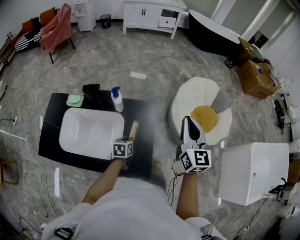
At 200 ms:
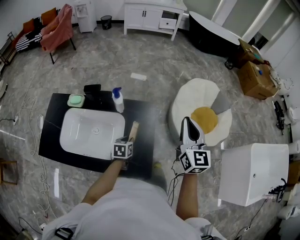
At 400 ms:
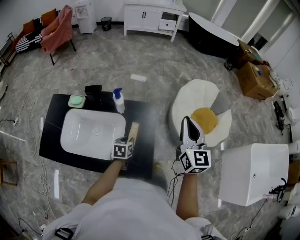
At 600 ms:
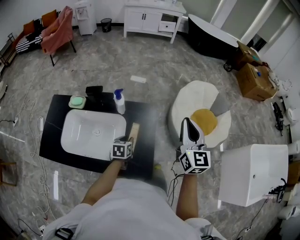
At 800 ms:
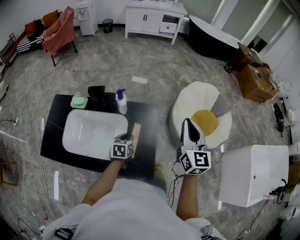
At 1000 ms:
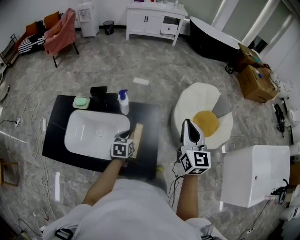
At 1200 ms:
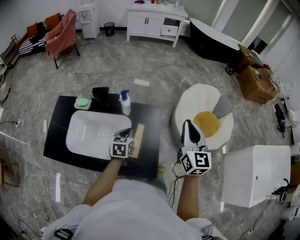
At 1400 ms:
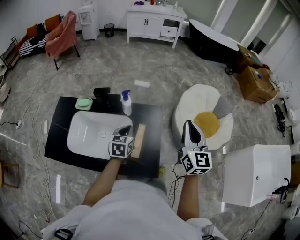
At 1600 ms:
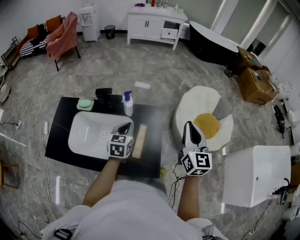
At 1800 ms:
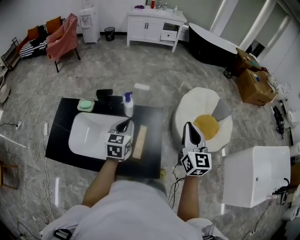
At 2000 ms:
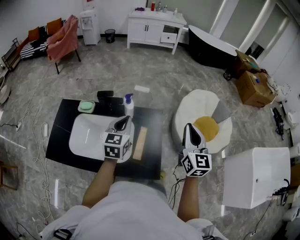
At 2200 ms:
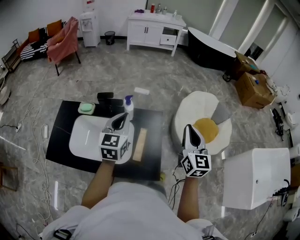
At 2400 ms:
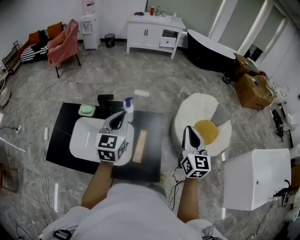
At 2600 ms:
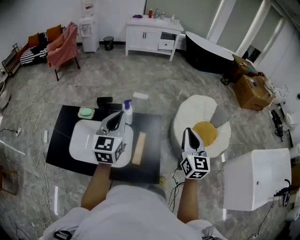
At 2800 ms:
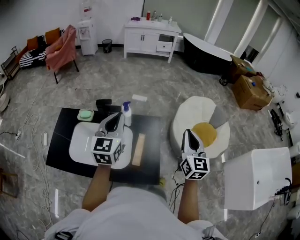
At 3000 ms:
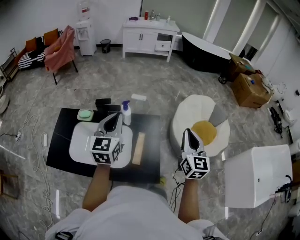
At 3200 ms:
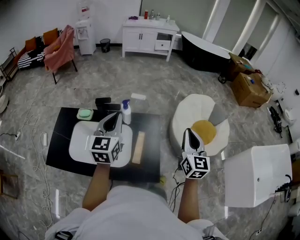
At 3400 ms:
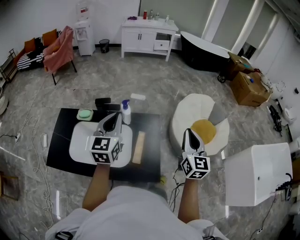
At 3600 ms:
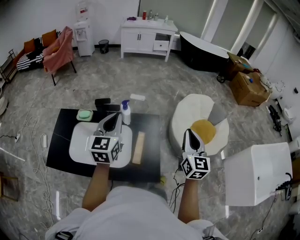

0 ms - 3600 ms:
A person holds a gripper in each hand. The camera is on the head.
0 ms - 1800 ms: The left gripper heads upward, covering about 20 cm, and changes its angle by approximately 30 degrees, while the right gripper shifts about 5 cm backward.
1800 ms - 3600 ms: The left gripper goes about 10 cm upward.

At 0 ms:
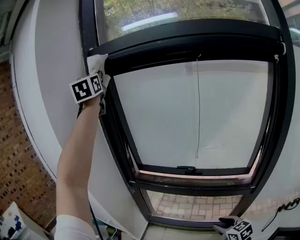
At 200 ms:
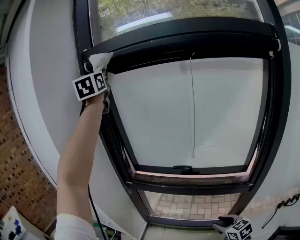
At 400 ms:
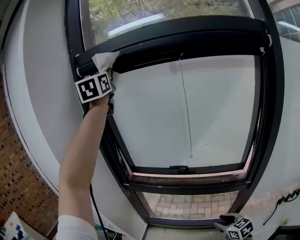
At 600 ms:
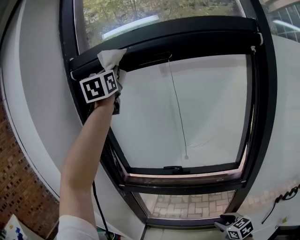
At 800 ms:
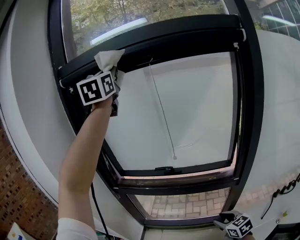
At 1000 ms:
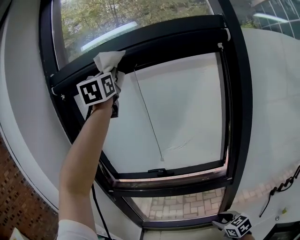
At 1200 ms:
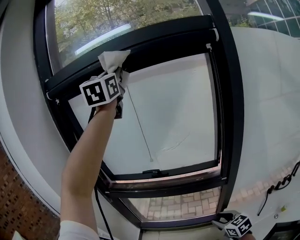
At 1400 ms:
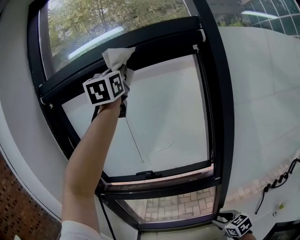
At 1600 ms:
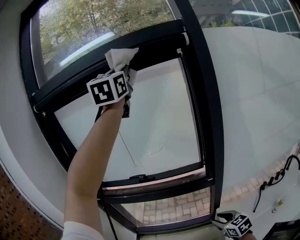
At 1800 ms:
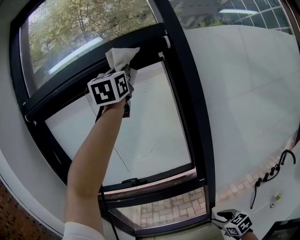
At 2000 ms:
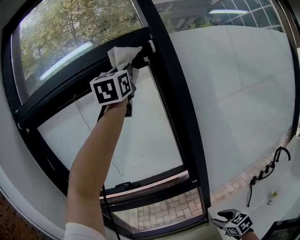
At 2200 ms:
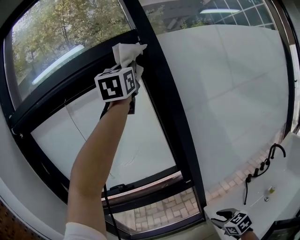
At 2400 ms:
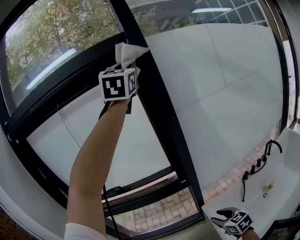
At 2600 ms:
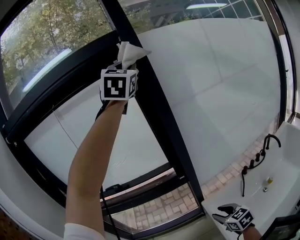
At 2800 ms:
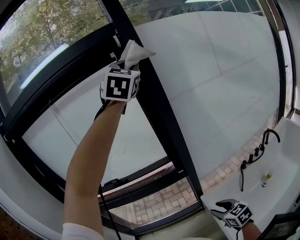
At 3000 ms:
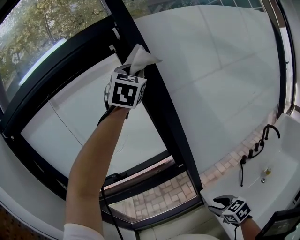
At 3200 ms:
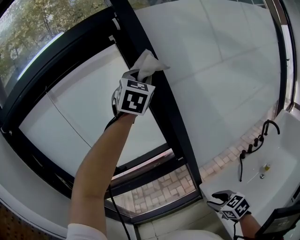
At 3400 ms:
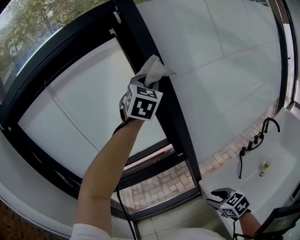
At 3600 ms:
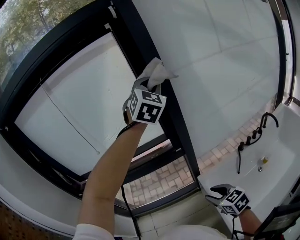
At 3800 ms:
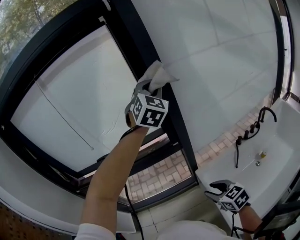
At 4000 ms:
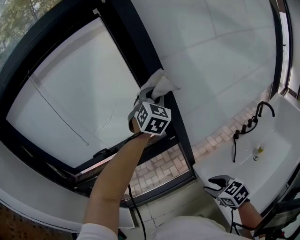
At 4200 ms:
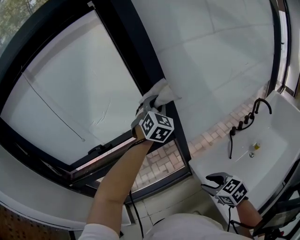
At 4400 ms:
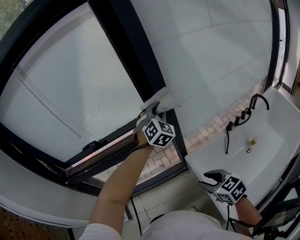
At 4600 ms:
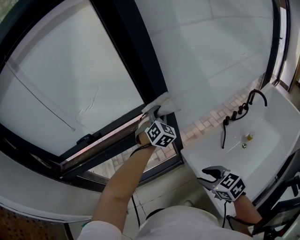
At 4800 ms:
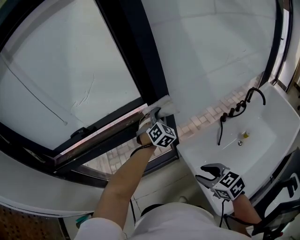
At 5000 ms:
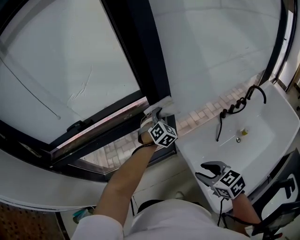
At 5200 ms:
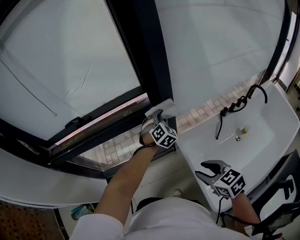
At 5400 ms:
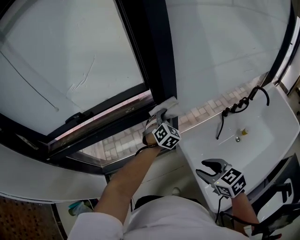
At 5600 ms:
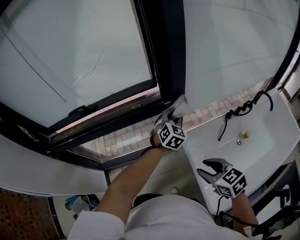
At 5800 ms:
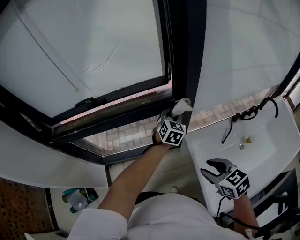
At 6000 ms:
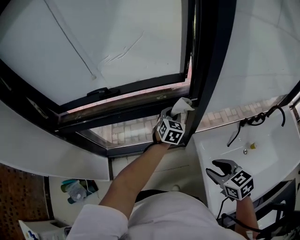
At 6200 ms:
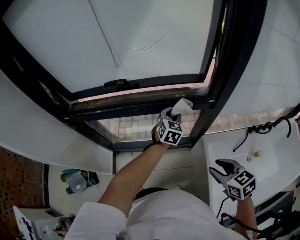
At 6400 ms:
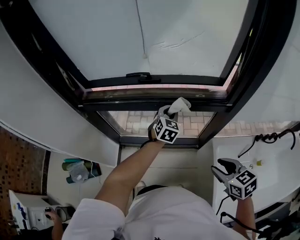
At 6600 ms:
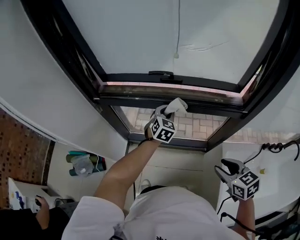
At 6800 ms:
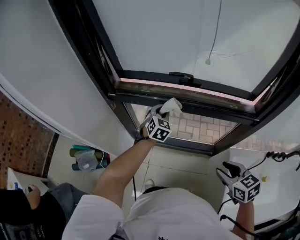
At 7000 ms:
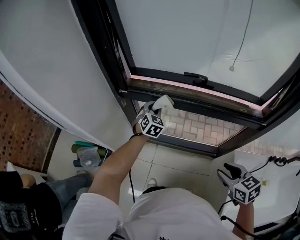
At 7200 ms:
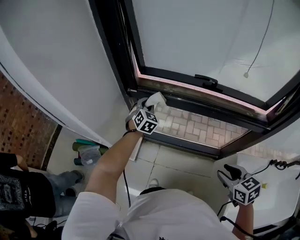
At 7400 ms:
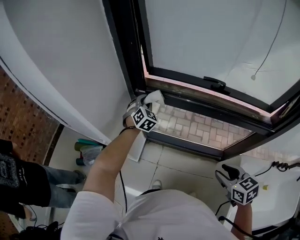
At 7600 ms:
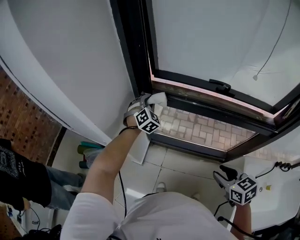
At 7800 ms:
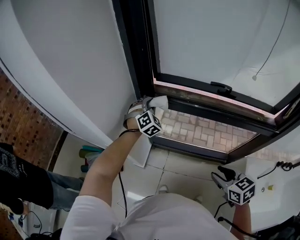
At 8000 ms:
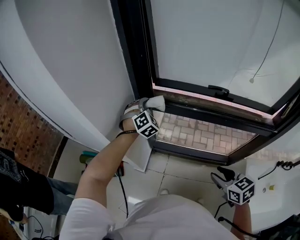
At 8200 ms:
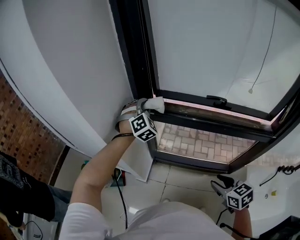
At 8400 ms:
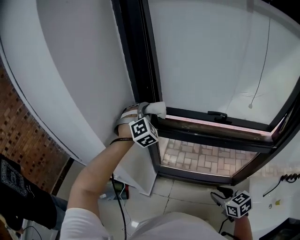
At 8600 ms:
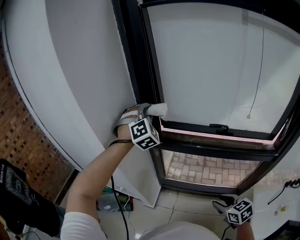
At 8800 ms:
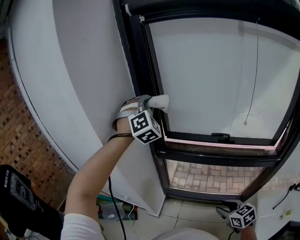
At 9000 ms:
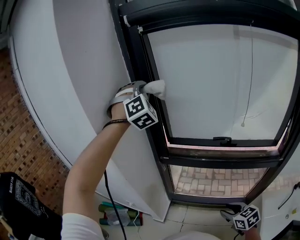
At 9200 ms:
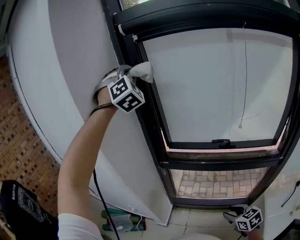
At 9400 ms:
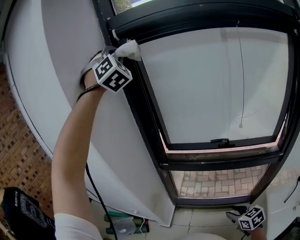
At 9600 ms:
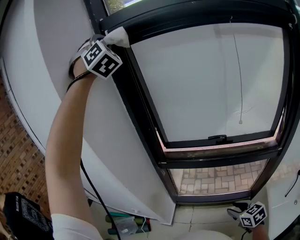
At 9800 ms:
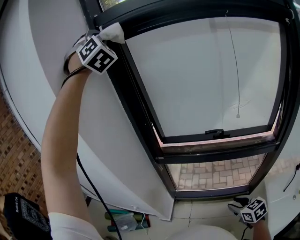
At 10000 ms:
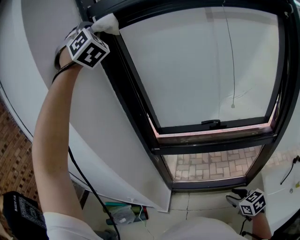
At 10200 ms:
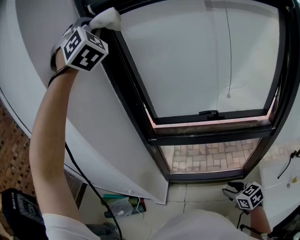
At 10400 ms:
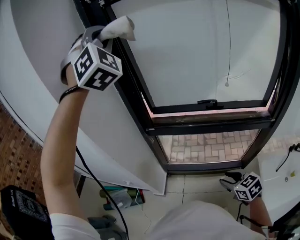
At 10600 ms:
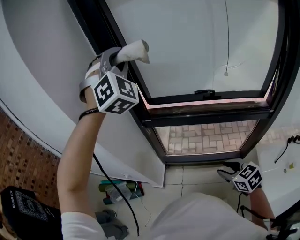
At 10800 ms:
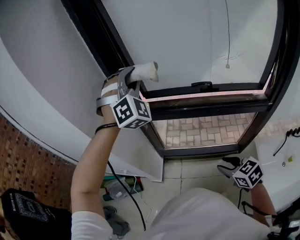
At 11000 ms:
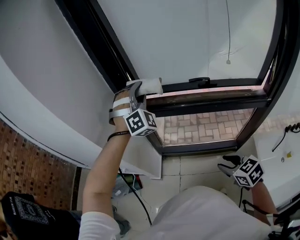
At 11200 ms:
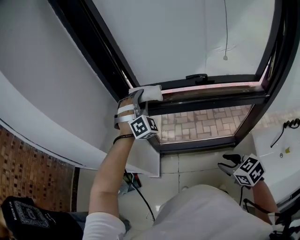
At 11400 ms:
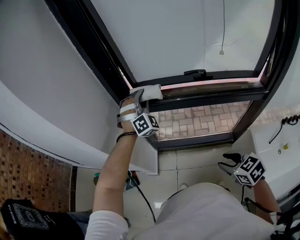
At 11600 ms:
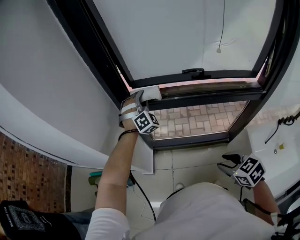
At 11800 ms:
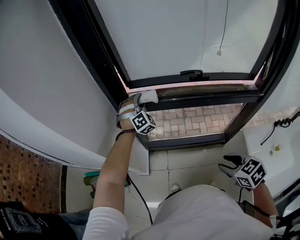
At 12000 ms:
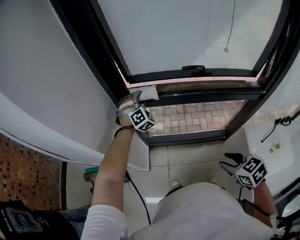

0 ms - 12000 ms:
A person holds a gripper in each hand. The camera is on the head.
0 ms - 1600 ms: The right gripper travels to the right and backward by approximately 20 cm; the left gripper heads to the right, covering some 50 cm, and changes its angle by some 30 degrees.
1600 ms - 3000 ms: The left gripper moves to the right and downward, approximately 30 cm, and turns by approximately 30 degrees. The right gripper moves to the right, some 10 cm.
3000 ms - 4400 ms: The left gripper goes approximately 40 cm downward.
4400 ms - 6000 ms: The left gripper moves downward and to the left, approximately 25 cm, and swivels about 40 degrees.
6000 ms - 7600 ms: The left gripper changes place by about 70 cm, and rotates approximately 40 degrees; the right gripper moves approximately 35 cm.
7600 ms - 9000 ms: The left gripper heads upward, covering approximately 50 cm, and changes its angle by about 40 degrees.
9000 ms - 10400 ms: The left gripper is displaced upward and backward by roughly 15 cm.
10400 ms - 12000 ms: The left gripper travels downward by roughly 60 cm, and turns by roughly 30 degrees.

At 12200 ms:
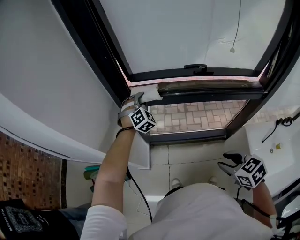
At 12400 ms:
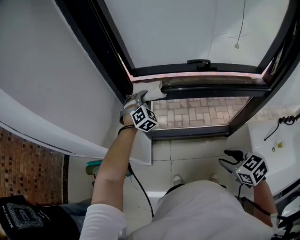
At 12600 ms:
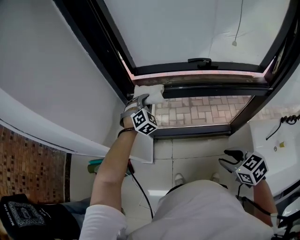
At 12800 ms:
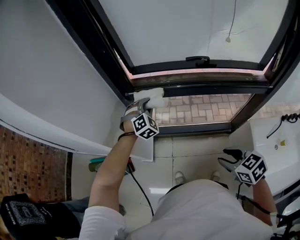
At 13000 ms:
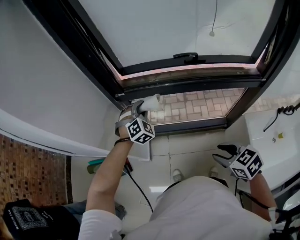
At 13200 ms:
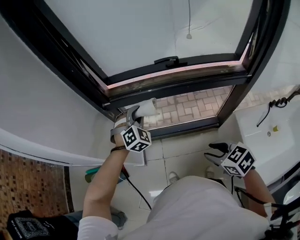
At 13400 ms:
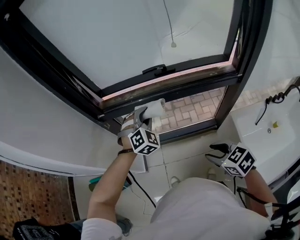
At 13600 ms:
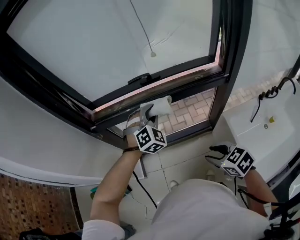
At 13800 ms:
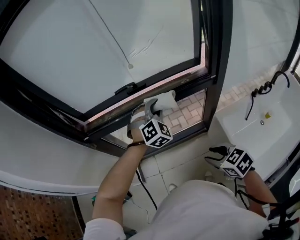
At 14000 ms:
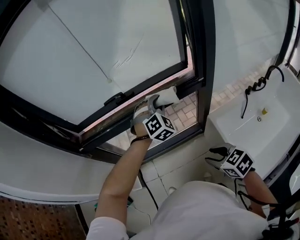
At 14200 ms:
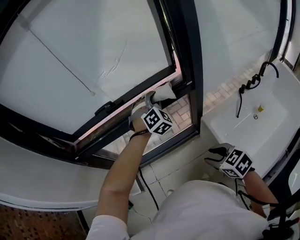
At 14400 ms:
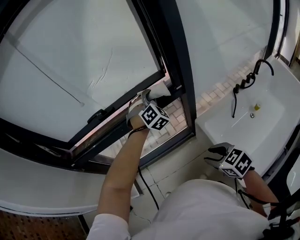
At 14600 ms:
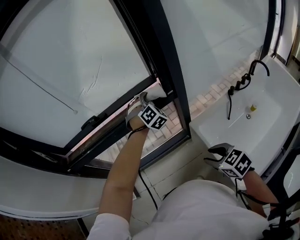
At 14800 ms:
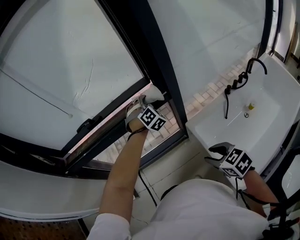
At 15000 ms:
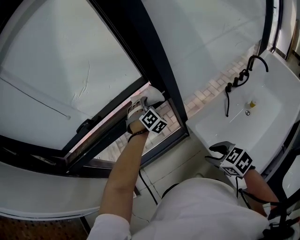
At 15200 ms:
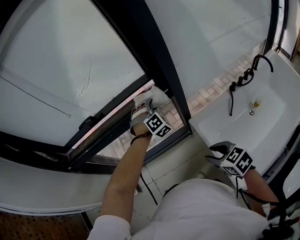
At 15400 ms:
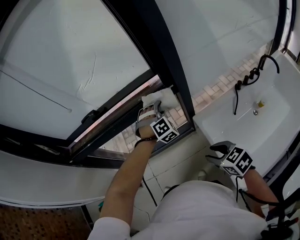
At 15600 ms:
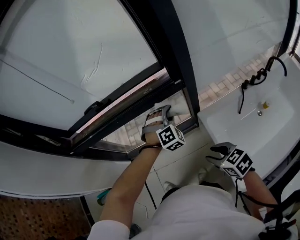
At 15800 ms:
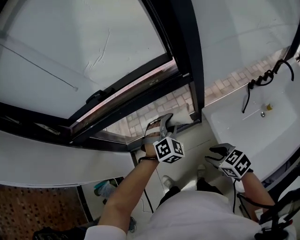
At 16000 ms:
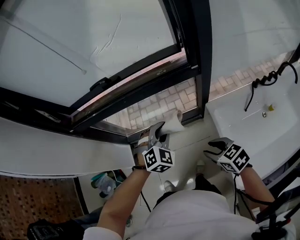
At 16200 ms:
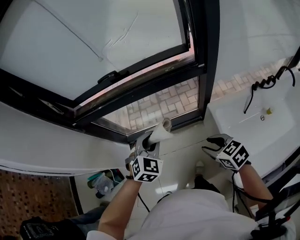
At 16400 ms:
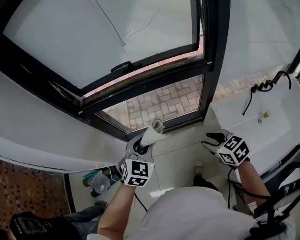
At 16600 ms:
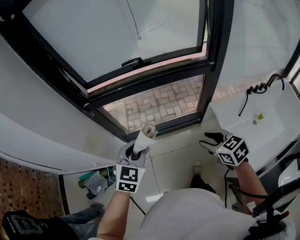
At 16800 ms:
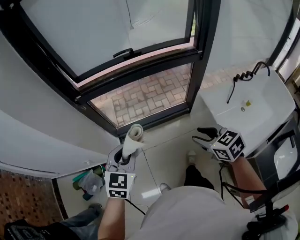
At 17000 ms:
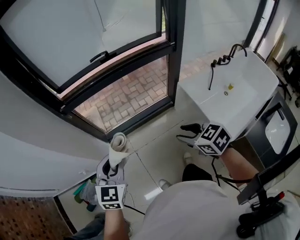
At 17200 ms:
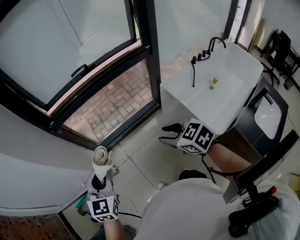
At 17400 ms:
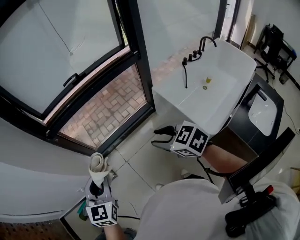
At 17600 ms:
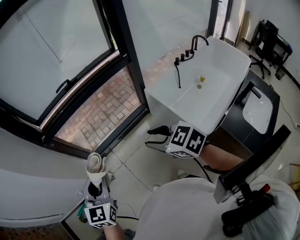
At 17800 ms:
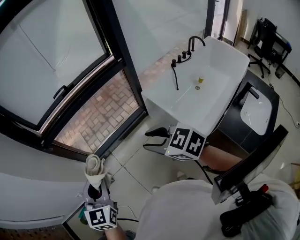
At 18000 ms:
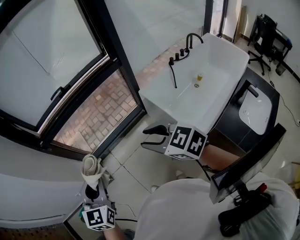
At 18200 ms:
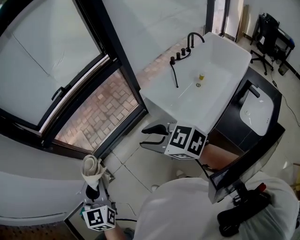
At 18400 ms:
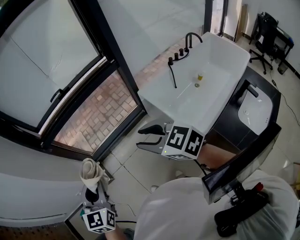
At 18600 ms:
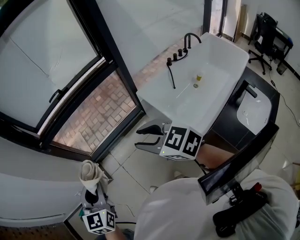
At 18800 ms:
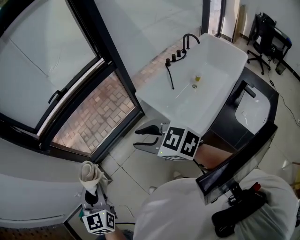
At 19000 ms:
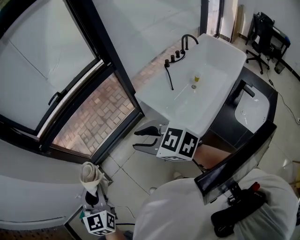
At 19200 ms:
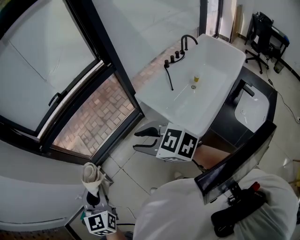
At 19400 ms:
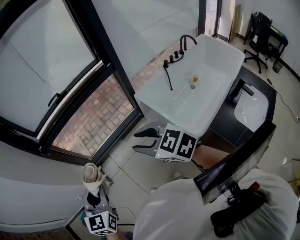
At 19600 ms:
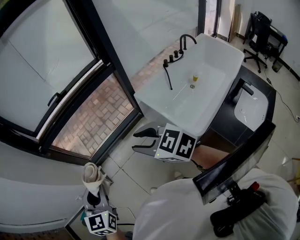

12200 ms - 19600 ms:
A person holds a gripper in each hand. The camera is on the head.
12200 ms - 13600 ms: The left gripper shifts approximately 30 cm to the right and backward; the right gripper goes about 10 cm to the right.
13600 ms - 15200 ms: The grippers both shift to the right by some 30 cm.
15200 ms - 16600 ms: The right gripper heads to the left, covering some 20 cm. Meanwhile the left gripper shifts approximately 50 cm to the left and backward, and rolls counterclockwise, seen from behind, by approximately 50 degrees.
16600 ms - 18200 ms: Both grippers move backward and upward, some 20 cm.
18200 ms - 19600 ms: The grippers move only a little.
